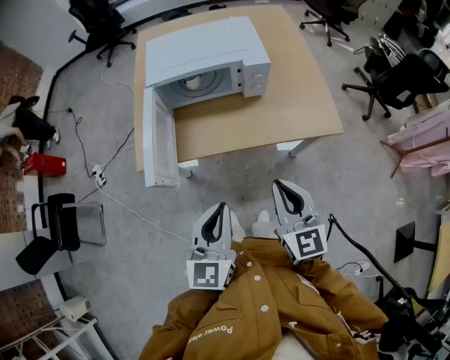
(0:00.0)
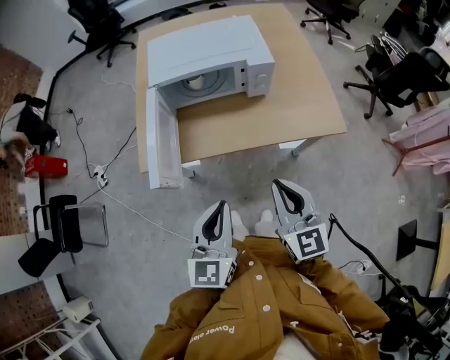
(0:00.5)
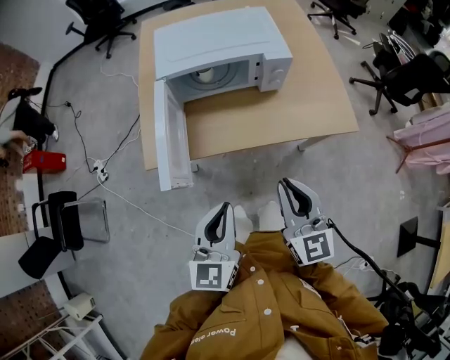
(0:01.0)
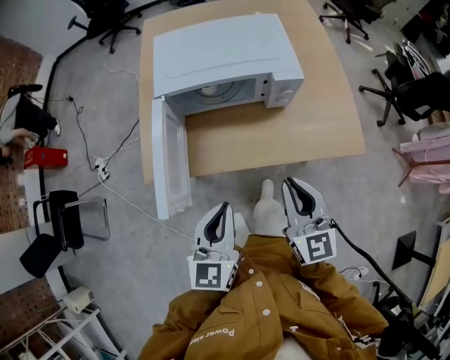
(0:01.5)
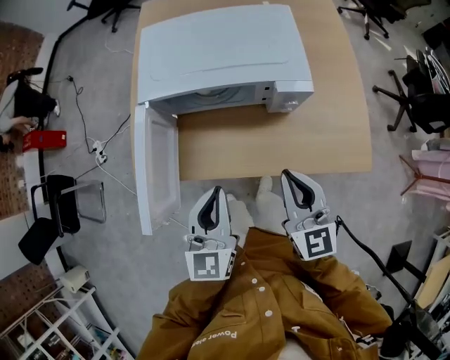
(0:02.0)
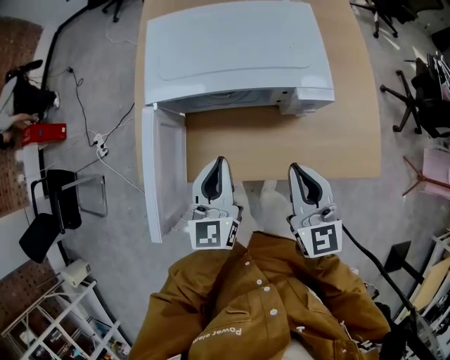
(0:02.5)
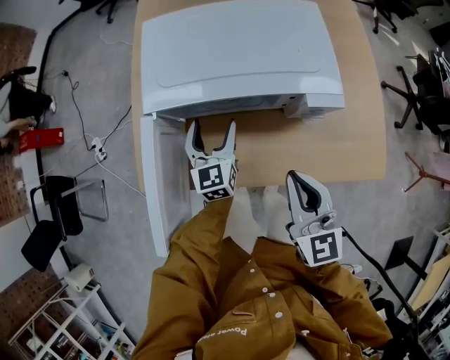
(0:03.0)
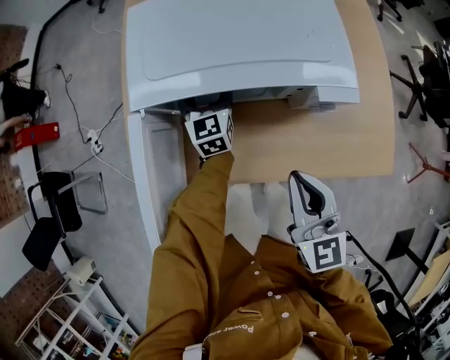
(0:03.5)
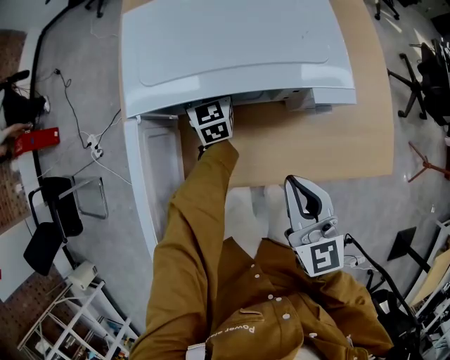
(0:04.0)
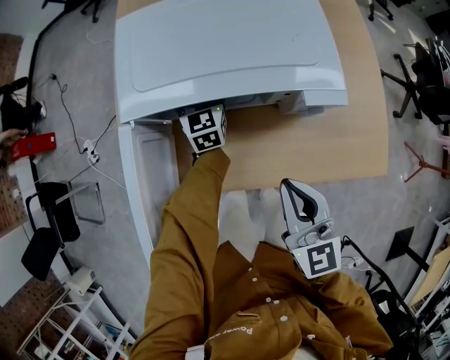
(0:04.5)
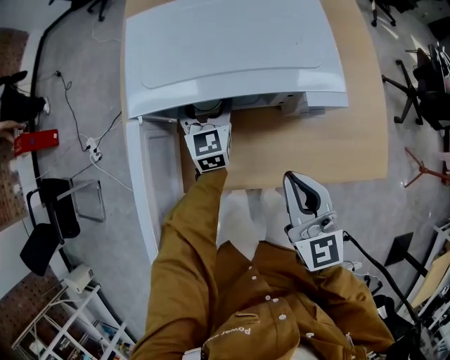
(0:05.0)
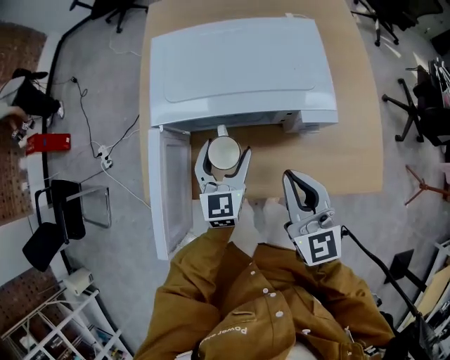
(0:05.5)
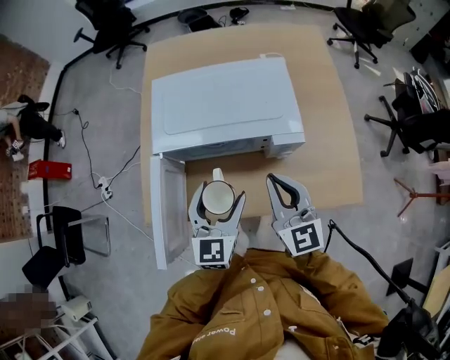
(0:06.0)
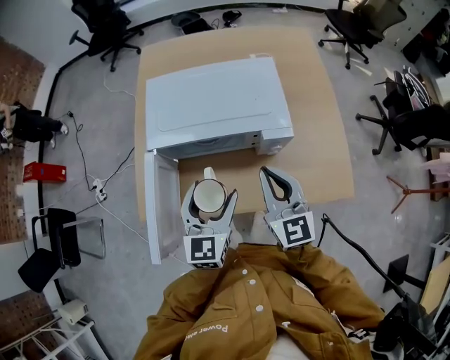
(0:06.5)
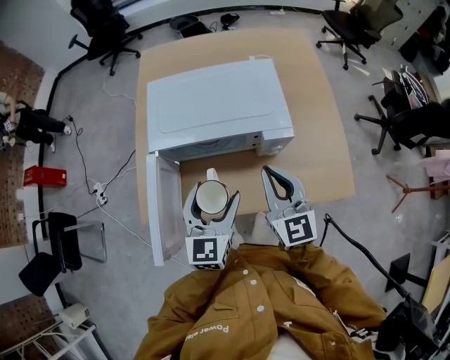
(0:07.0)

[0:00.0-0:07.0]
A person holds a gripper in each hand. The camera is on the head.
0:00.0 to 0:02.0: Both grippers move forward, roughly 20 cm.
0:02.0 to 0:03.5: The left gripper heads forward and downward, covering some 35 cm, and opens its fingers; the right gripper goes roughly 10 cm downward and forward.
0:03.5 to 0:05.0: The grippers make only small movements.
0:05.0 to 0:07.0: The left gripper moves backward and upward, some 25 cm. Meanwhile the right gripper shifts about 10 cm upward.

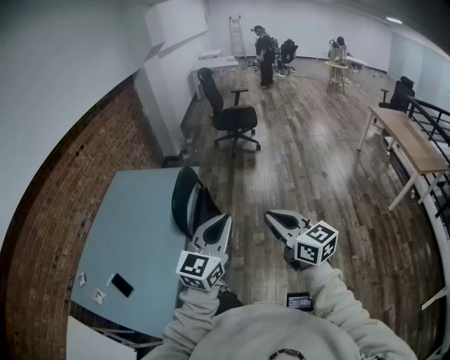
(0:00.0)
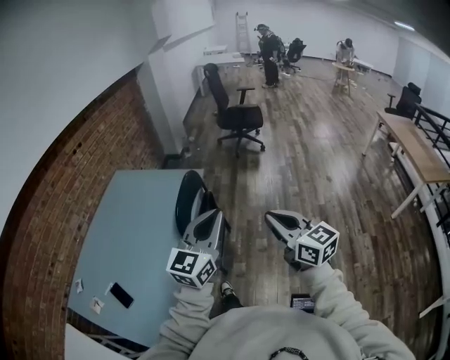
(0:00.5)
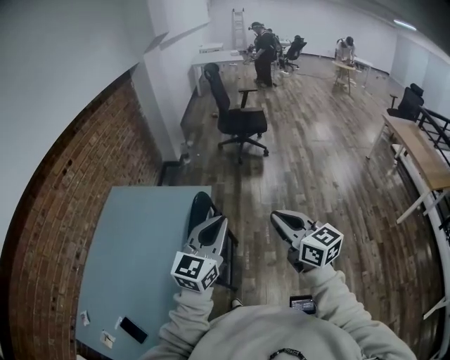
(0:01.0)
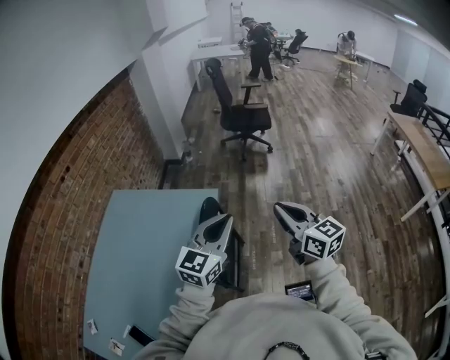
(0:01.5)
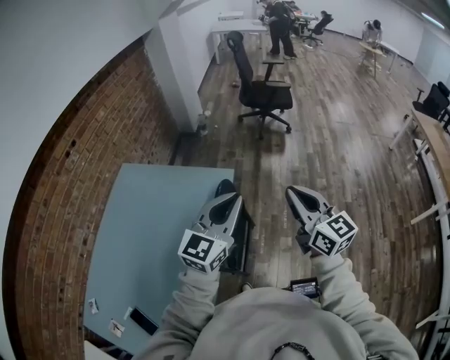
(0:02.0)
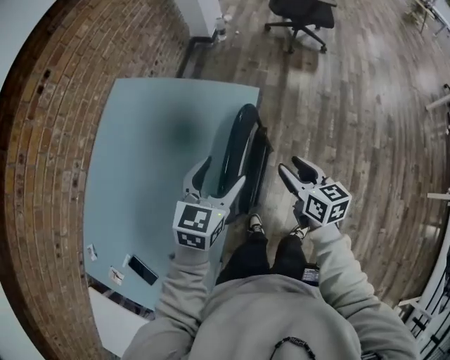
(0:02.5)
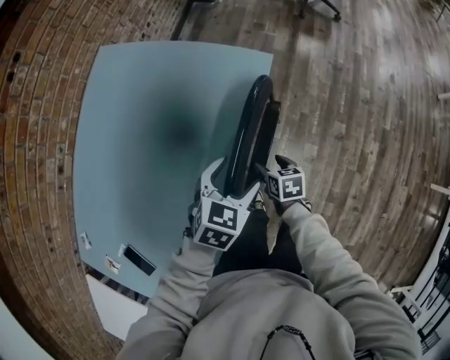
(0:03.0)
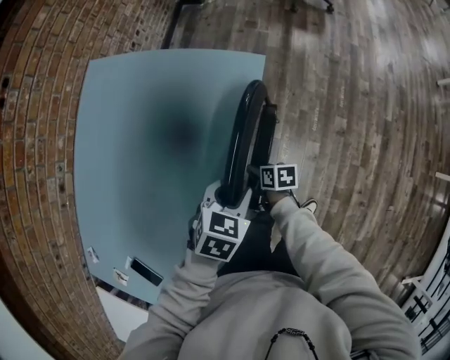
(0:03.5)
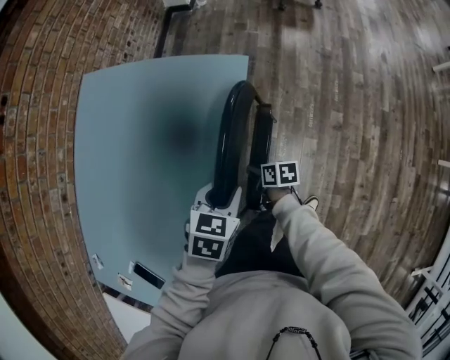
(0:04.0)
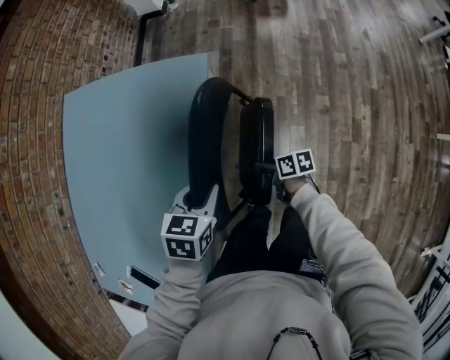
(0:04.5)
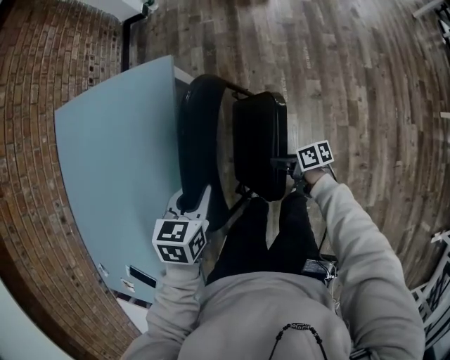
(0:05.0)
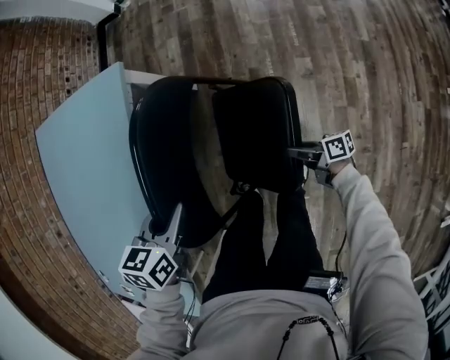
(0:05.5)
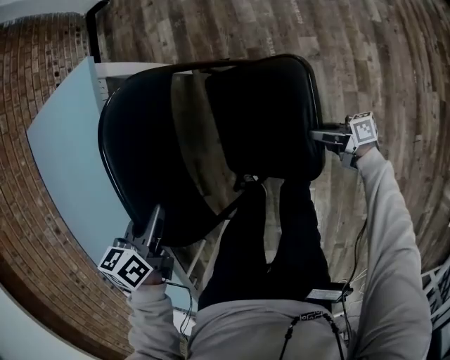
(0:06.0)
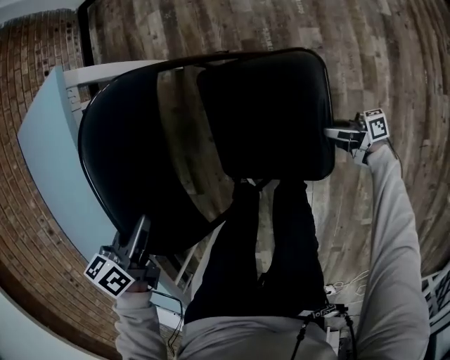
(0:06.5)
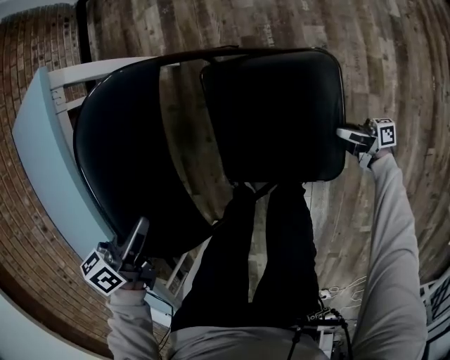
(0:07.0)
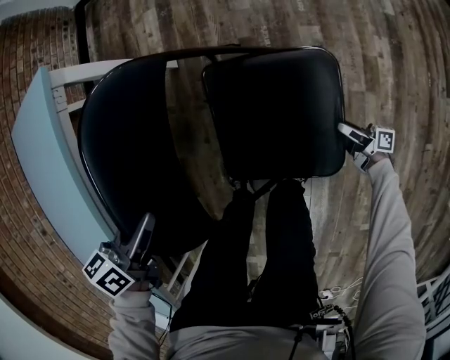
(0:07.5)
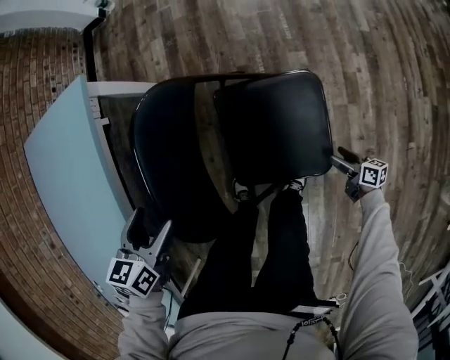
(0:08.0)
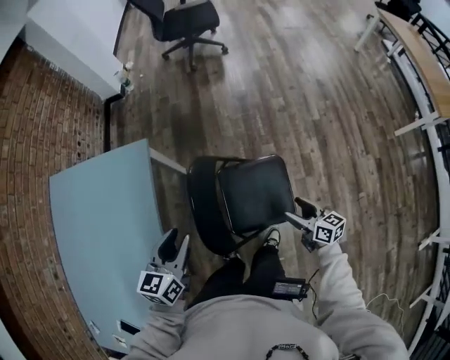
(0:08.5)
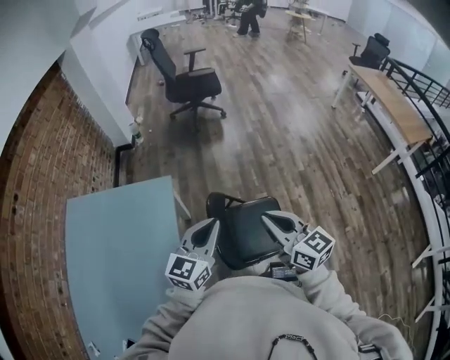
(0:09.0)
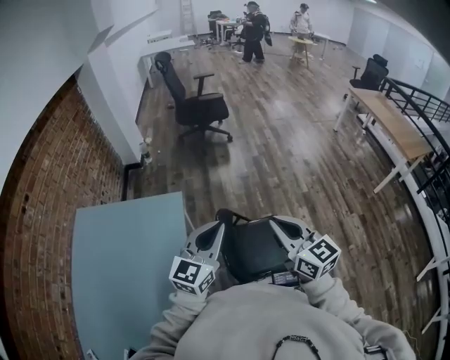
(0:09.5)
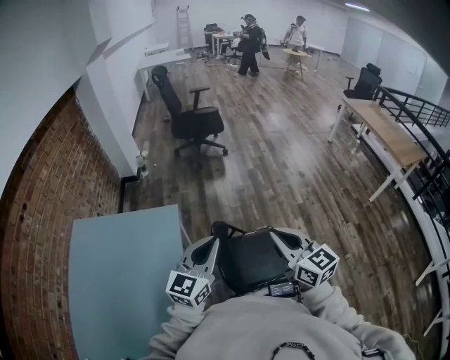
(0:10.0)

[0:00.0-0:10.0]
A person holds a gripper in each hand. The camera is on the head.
0:00.0 to 0:02.0: The pair of grippers is taken forward, about 50 cm.
0:02.0 to 0:04.0: The right gripper heads downward, covering approximately 60 cm, points its fingers about 40 degrees further downward, and opens. Meanwhile the left gripper travels downward by some 40 cm, angles its fingers downward, by approximately 60 degrees, and opens, then closes again.
0:04.0 to 0:06.0: The right gripper heads to the right, backward and downward, covering about 50 cm, and angles its fingers upward, by some 40 degrees; the left gripper is displaced to the right, downward and backward by approximately 20 cm.
0:06.0 to 0:08.0: The right gripper travels to the right, backward and downward by about 20 cm, turns by roughly 30 degrees, and opens; the left gripper travels downward and back again, approximately 10 cm each way, and opens up.
0:08.0 to 0:10.0: The right gripper heads upward, covering about 80 cm, rolls counterclockwise, seen from behind, by some 50 degrees, and closes its fingers. Meanwhile the left gripper goes roughly 50 cm upward, tips its fingers upward by about 50 degrees, and closes up.

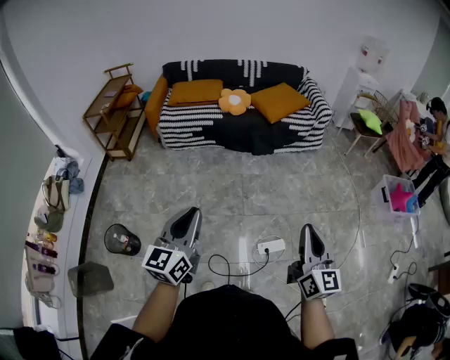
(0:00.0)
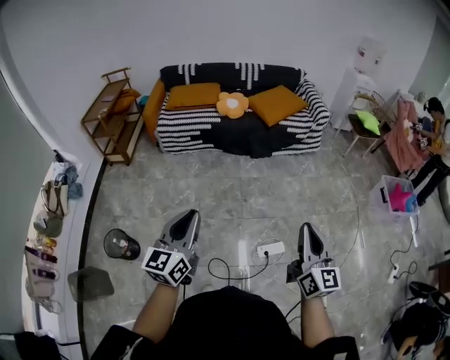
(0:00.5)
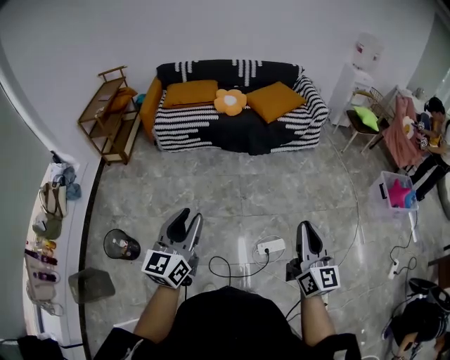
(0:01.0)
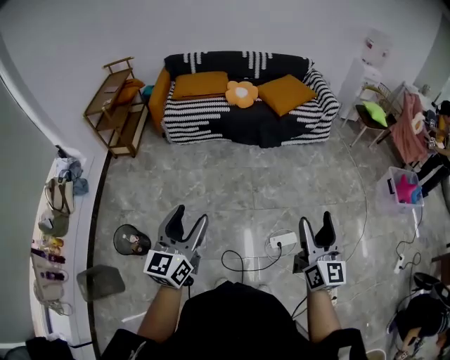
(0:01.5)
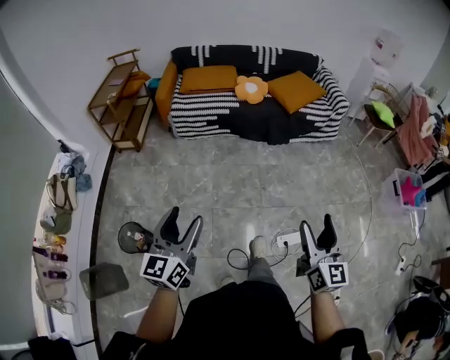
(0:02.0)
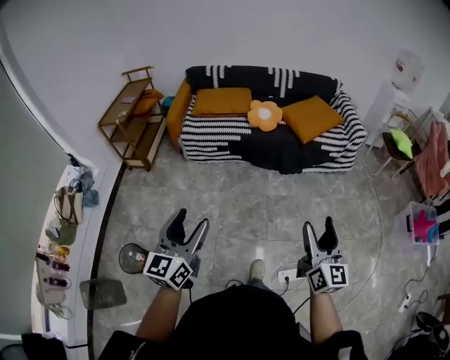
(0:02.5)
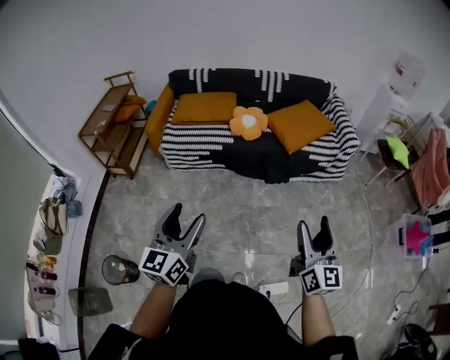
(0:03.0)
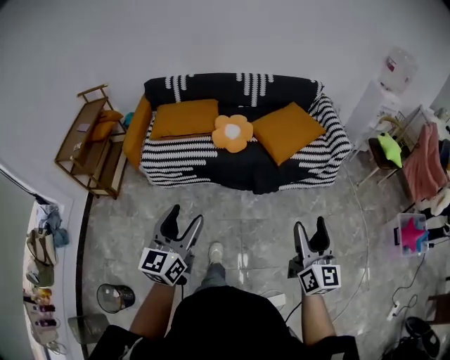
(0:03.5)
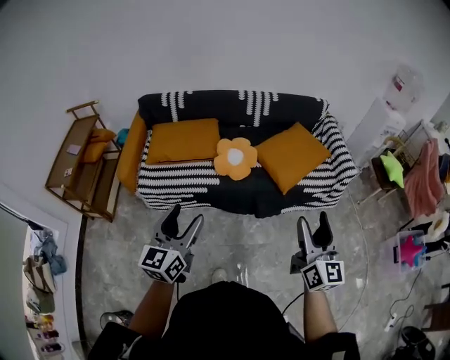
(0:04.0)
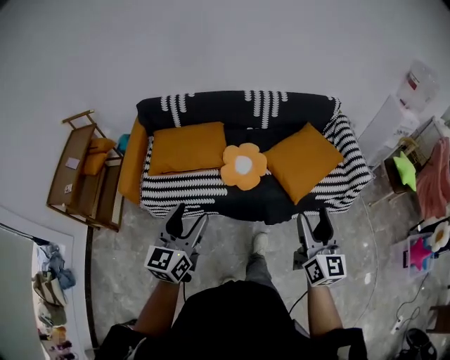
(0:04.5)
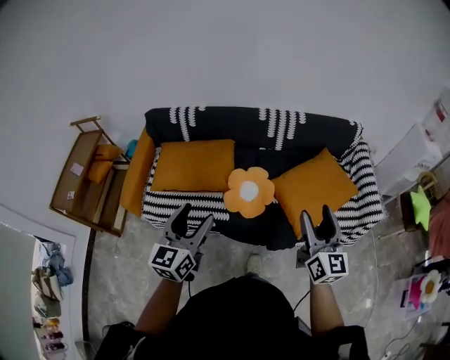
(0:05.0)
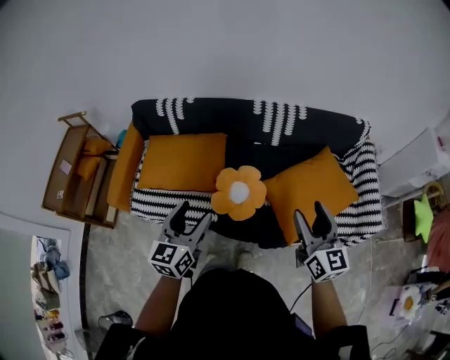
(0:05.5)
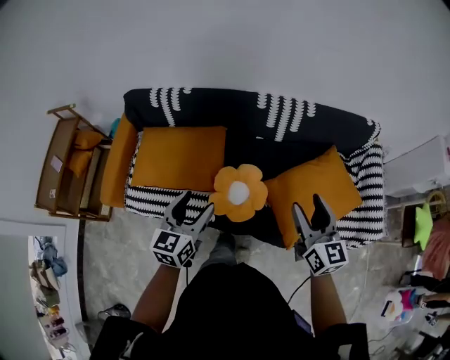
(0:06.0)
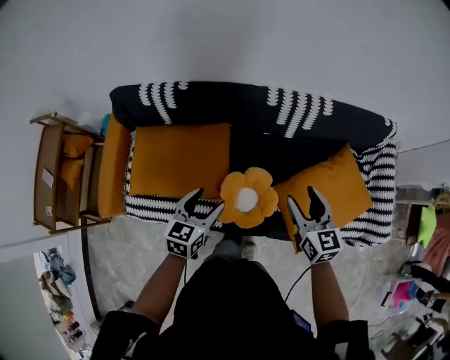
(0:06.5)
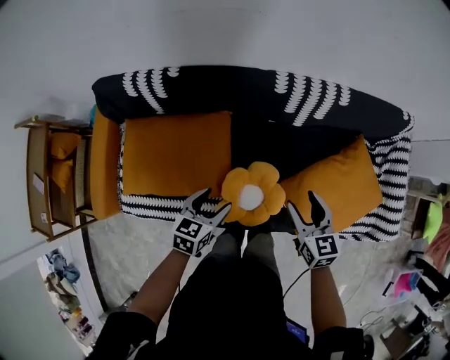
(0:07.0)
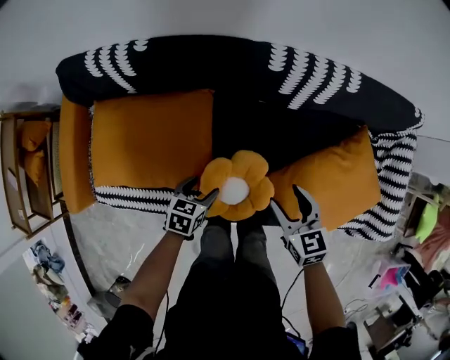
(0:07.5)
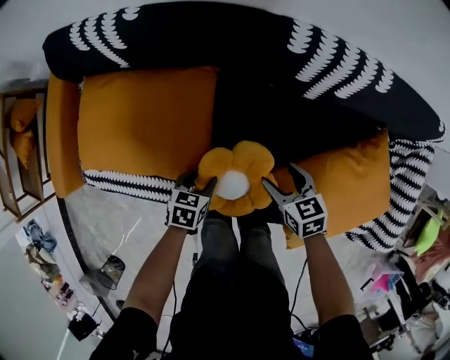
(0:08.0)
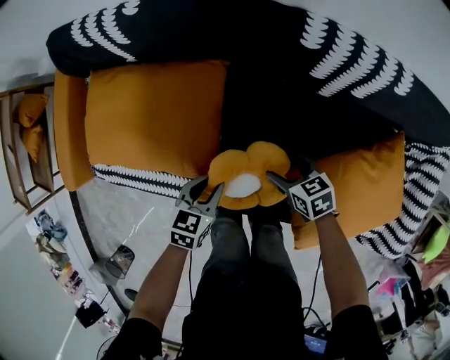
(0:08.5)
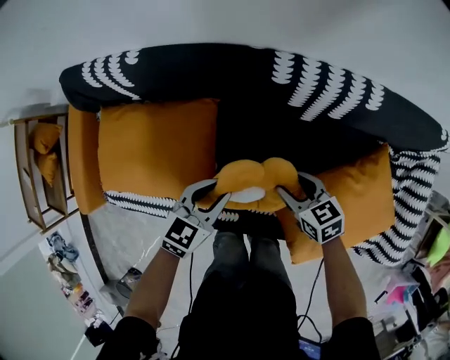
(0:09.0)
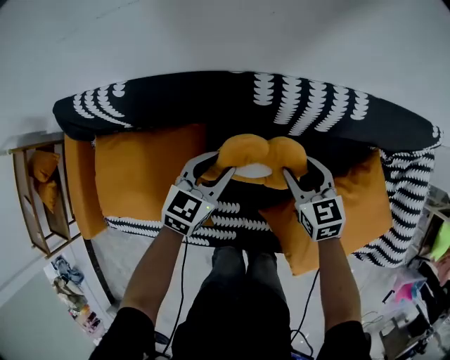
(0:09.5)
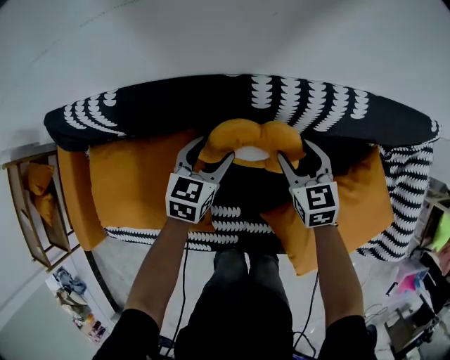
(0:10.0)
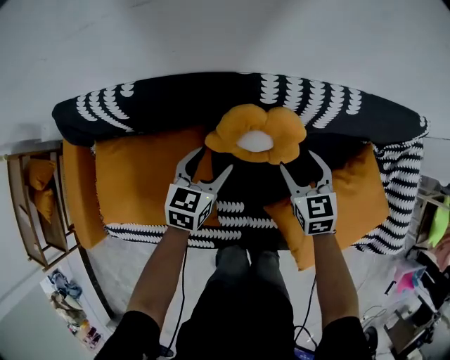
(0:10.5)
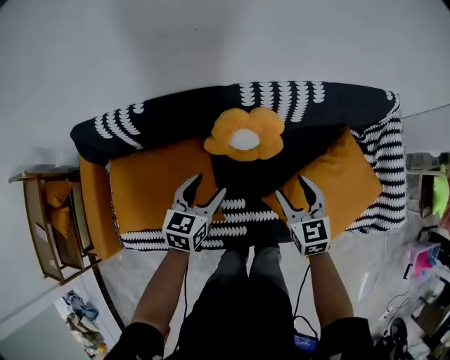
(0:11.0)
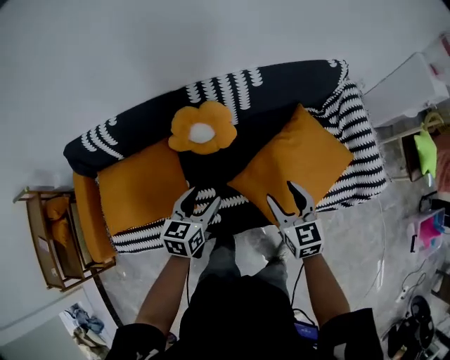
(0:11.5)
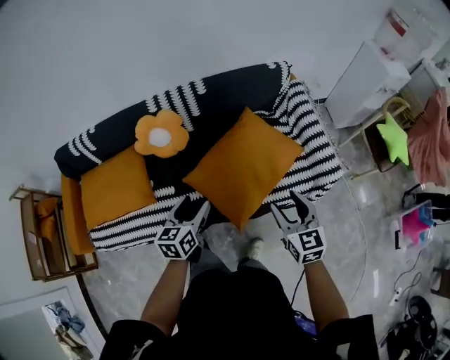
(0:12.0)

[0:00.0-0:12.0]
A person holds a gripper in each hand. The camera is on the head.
0:00.0 to 0:02.0: Both grippers move to the left, some 15 cm. The right gripper opens up; the left gripper opens up.
0:02.0 to 0:04.0: The two grippers travel together, forward, approximately 60 cm.
0:04.0 to 0:06.0: The two grippers travel together, forward, about 50 cm. The right gripper changes its angle by about 30 degrees.
0:06.0 to 0:08.0: Both grippers move downward, roughly 40 cm. The left gripper tilts its fingers approximately 40 degrees downward. The right gripper angles its fingers downward, by some 40 degrees.
0:08.0 to 0:10.0: The left gripper moves some 30 cm, and rotates roughly 30 degrees. Meanwhile the right gripper ends up approximately 20 cm from where it was, and changes its angle by some 20 degrees.
0:10.0 to 0:12.0: The pair of grippers is taken backward and to the right, roughly 50 cm. Both grippers move upward, roughly 20 cm. The right gripper changes its angle by approximately 20 degrees.
